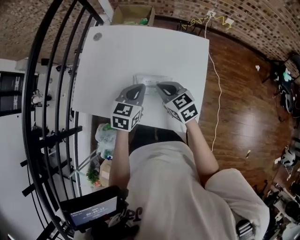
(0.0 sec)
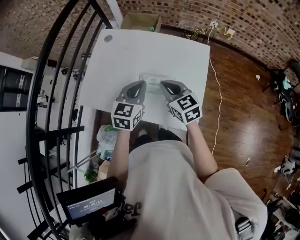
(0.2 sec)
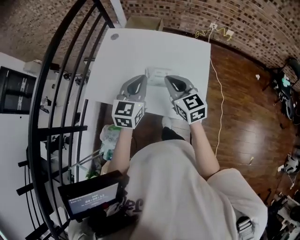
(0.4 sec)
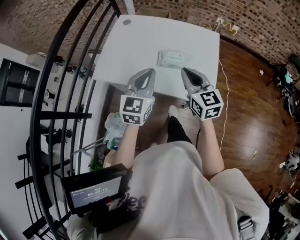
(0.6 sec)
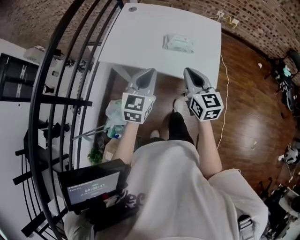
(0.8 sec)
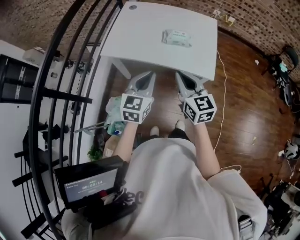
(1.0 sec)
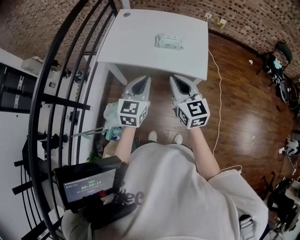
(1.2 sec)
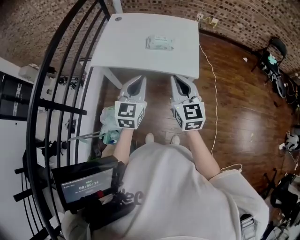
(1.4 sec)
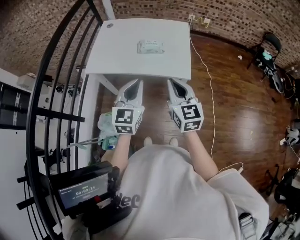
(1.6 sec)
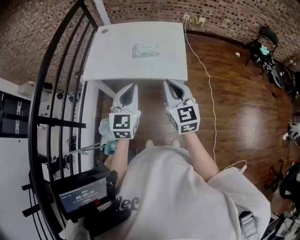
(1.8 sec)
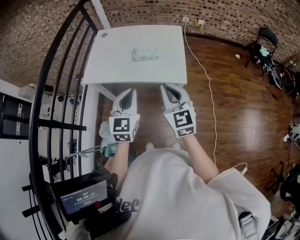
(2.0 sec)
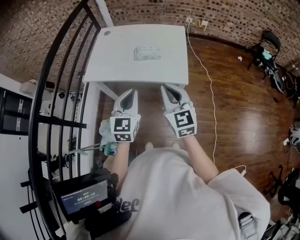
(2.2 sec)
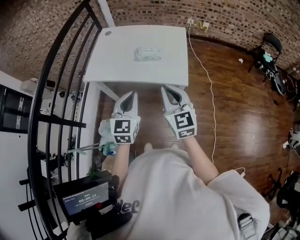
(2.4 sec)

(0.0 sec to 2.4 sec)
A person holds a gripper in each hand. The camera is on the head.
0.0 sec - 1.2 sec: The left gripper travels backward and to the left by approximately 35 cm, and rotates approximately 20 degrees; the right gripper goes roughly 40 cm backward and upward, and turns by about 30 degrees.
1.2 sec - 2.4 sec: Both grippers move to the right, approximately 10 cm.

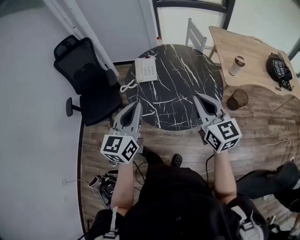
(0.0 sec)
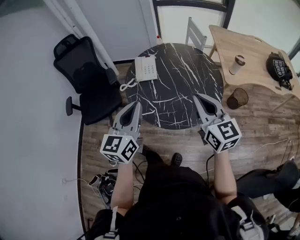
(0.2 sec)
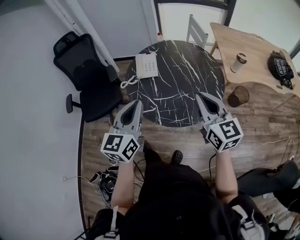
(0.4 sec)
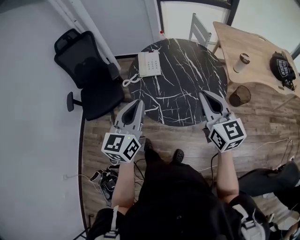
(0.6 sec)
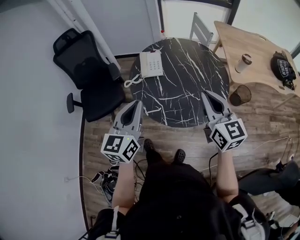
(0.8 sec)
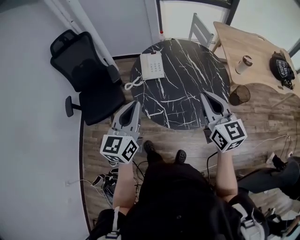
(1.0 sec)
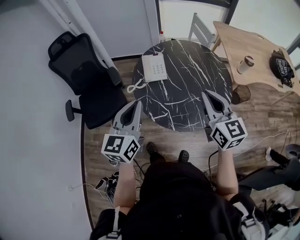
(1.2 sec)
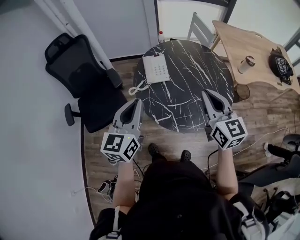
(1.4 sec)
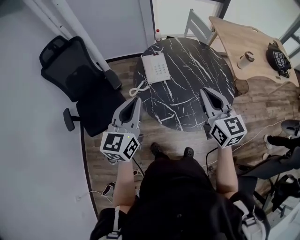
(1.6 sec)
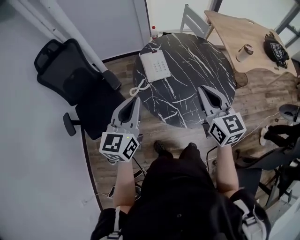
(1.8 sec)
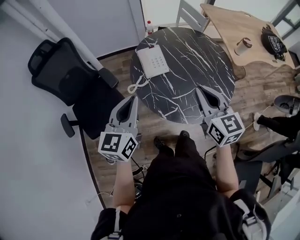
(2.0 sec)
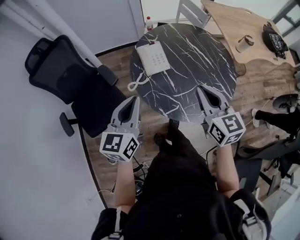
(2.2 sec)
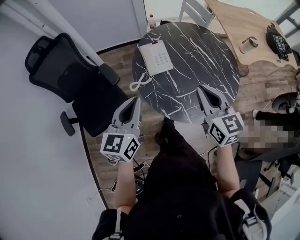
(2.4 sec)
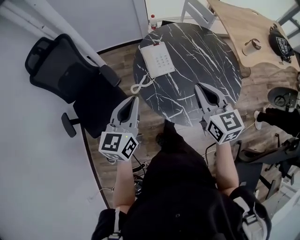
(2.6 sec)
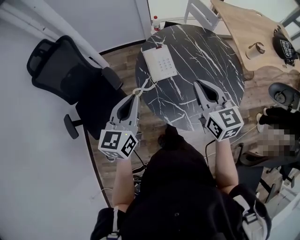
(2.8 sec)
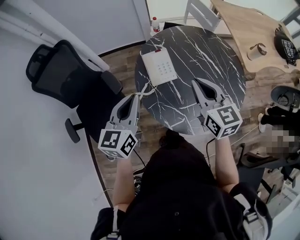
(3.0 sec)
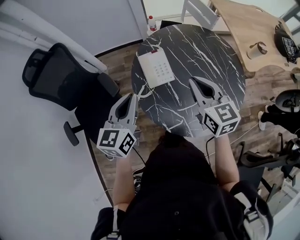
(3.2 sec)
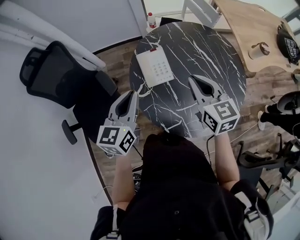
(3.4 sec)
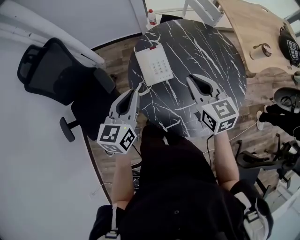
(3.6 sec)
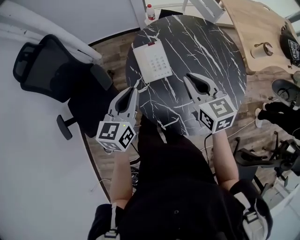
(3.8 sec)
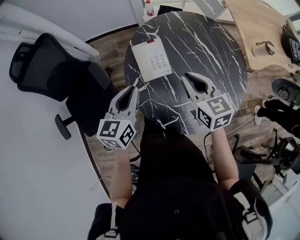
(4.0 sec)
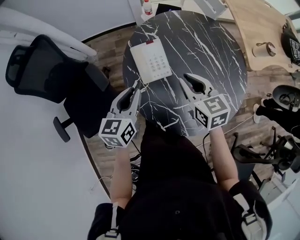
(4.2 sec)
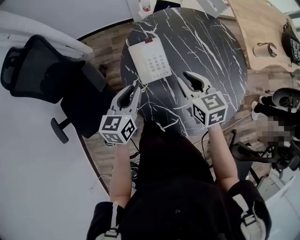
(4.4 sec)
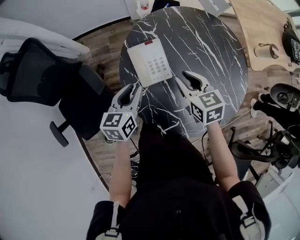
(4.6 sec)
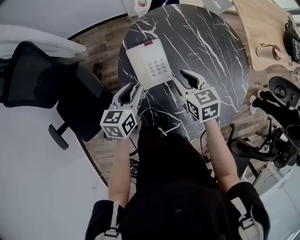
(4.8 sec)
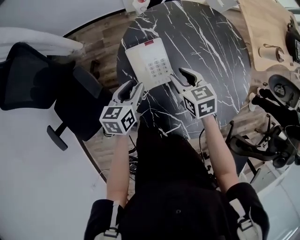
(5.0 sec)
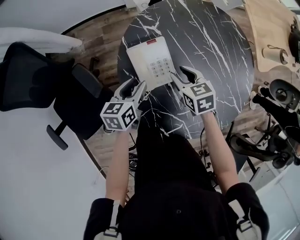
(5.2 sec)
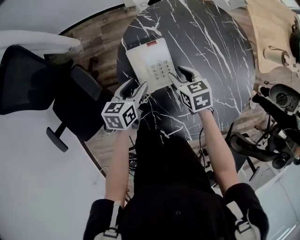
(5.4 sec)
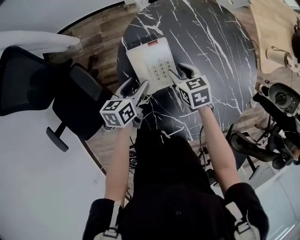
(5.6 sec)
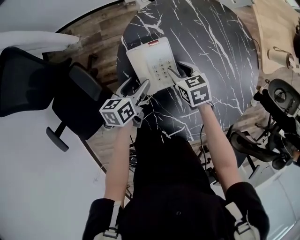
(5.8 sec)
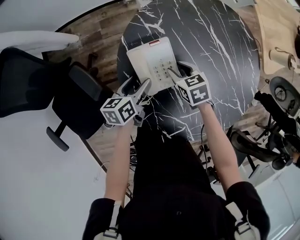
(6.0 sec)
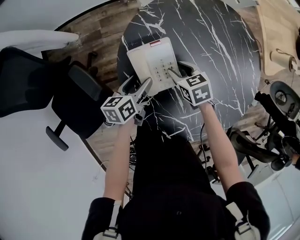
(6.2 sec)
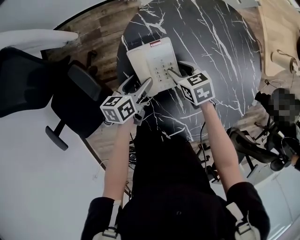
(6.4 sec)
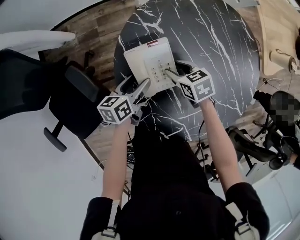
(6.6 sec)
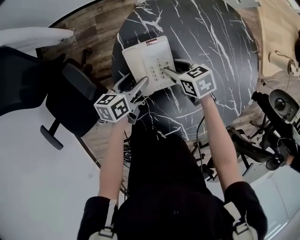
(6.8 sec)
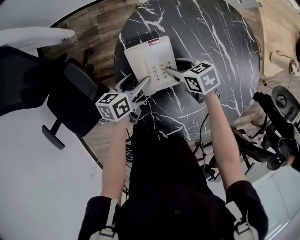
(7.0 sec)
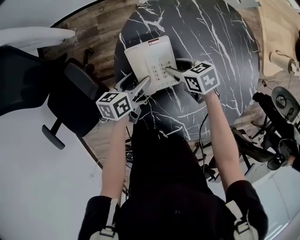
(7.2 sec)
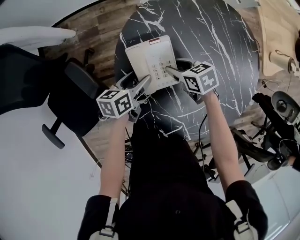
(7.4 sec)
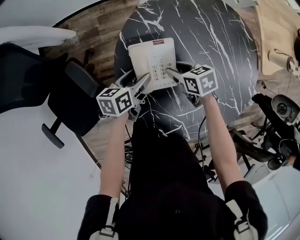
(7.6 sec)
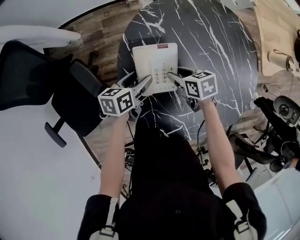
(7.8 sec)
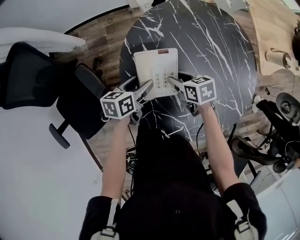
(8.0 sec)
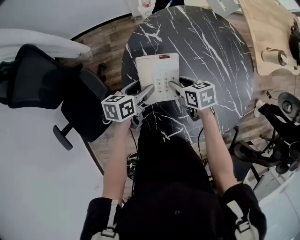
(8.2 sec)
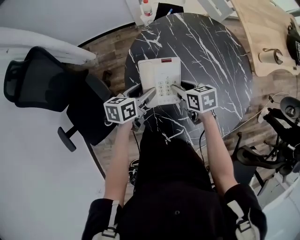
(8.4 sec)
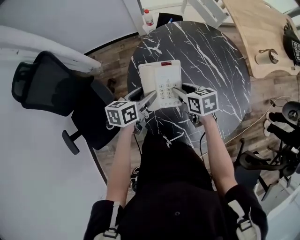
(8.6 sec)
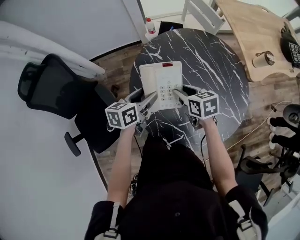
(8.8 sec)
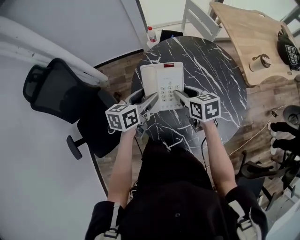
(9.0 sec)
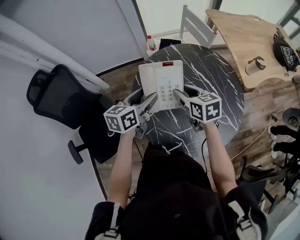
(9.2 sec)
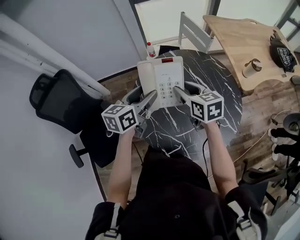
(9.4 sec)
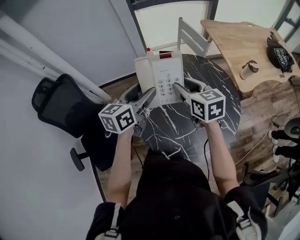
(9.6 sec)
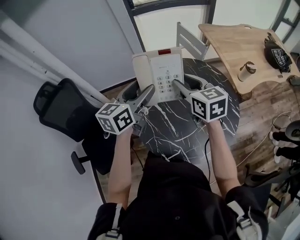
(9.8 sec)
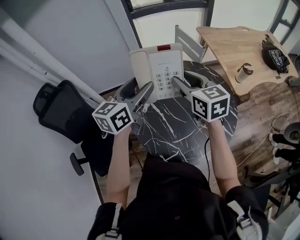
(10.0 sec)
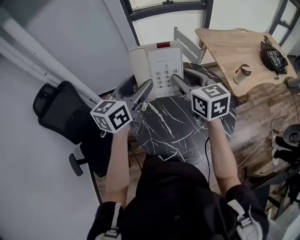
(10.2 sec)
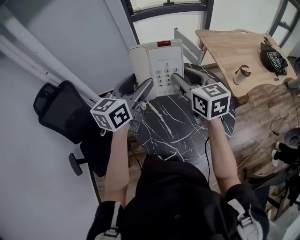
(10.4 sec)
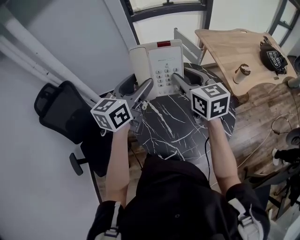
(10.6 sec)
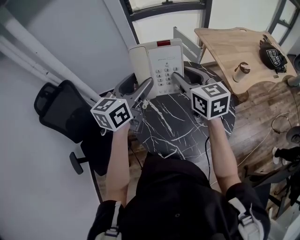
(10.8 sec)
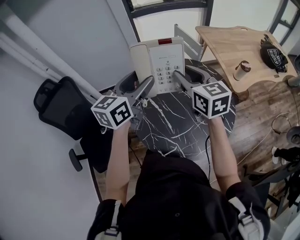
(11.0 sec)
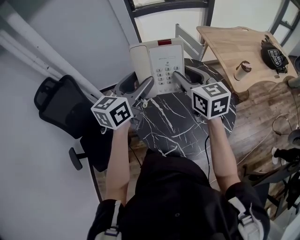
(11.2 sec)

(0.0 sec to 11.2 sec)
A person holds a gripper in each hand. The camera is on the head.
0.0 sec - 1.6 sec: The two grippers go some 20 cm to the left and forward.
1.6 sec - 3.2 sec: The grippers both shift forward and downward by some 15 cm.
3.2 sec - 4.8 sec: Both grippers travel together downward and forward, roughly 20 cm. The right gripper changes its angle by some 30 degrees, and opens its fingers. The left gripper changes its angle by roughly 30 degrees, and opens.
4.8 sec - 6.4 sec: Both grippers travel together downward, about 15 cm. The left gripper swivels some 20 degrees, and opens.
6.4 sec - 8.0 sec: The right gripper changes place by roughly 5 cm.
8.0 sec - 9.6 sec: The two grippers go some 30 cm upward. The right gripper swivels about 40 degrees. Meanwhile the left gripper rotates roughly 40 degrees.
9.6 sec - 11.2 sec: The two grippers go roughly 10 cm upward.

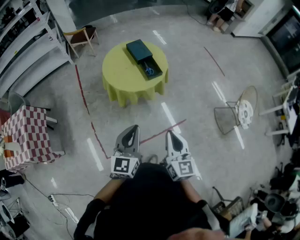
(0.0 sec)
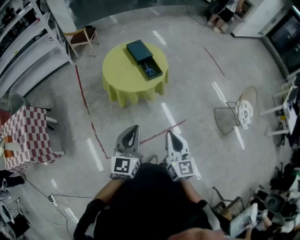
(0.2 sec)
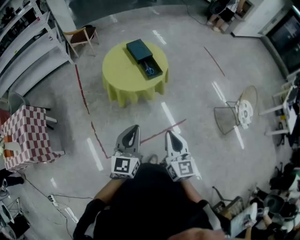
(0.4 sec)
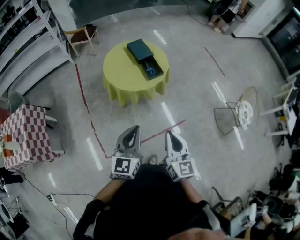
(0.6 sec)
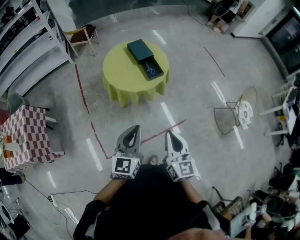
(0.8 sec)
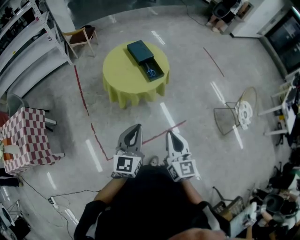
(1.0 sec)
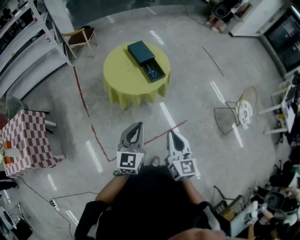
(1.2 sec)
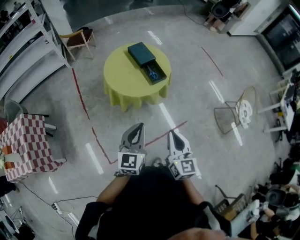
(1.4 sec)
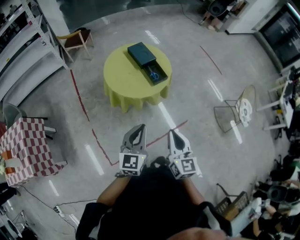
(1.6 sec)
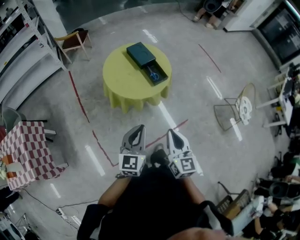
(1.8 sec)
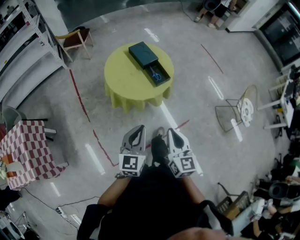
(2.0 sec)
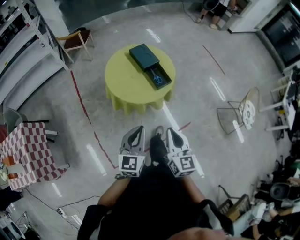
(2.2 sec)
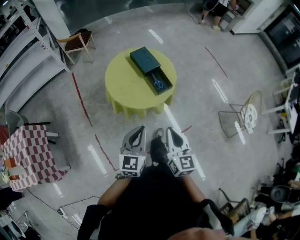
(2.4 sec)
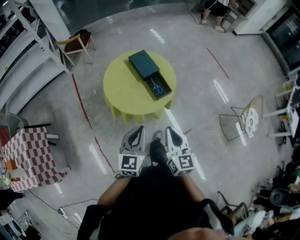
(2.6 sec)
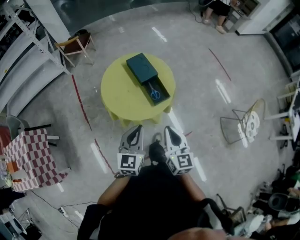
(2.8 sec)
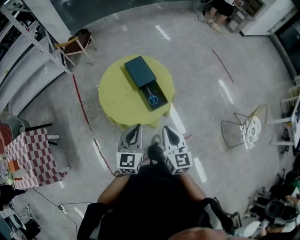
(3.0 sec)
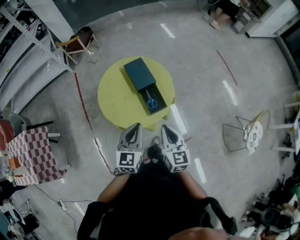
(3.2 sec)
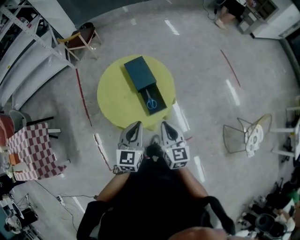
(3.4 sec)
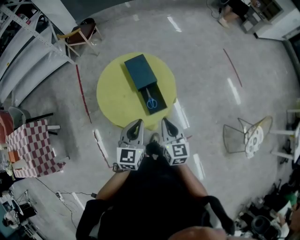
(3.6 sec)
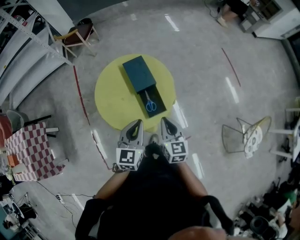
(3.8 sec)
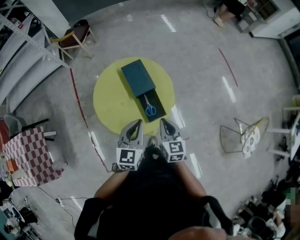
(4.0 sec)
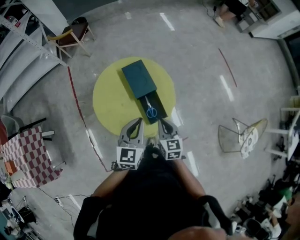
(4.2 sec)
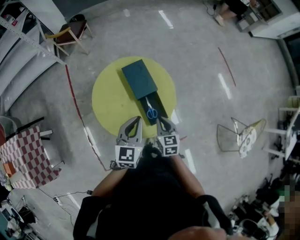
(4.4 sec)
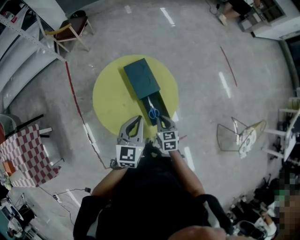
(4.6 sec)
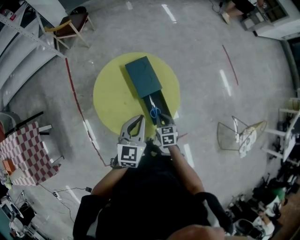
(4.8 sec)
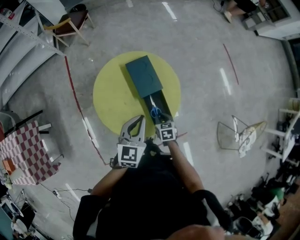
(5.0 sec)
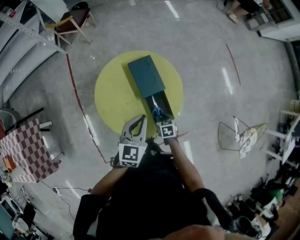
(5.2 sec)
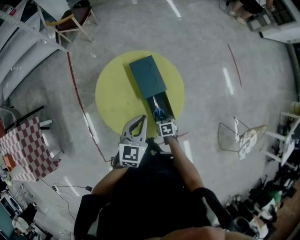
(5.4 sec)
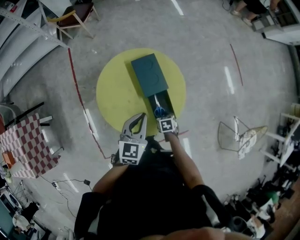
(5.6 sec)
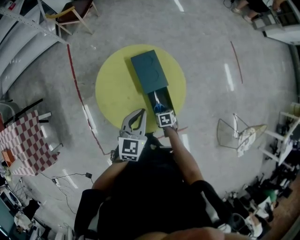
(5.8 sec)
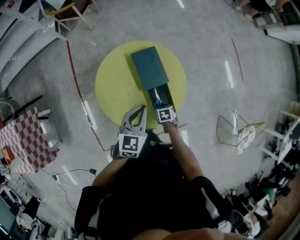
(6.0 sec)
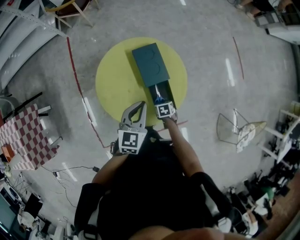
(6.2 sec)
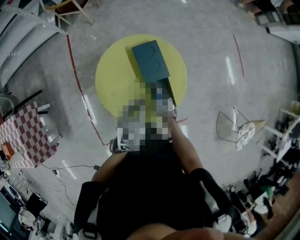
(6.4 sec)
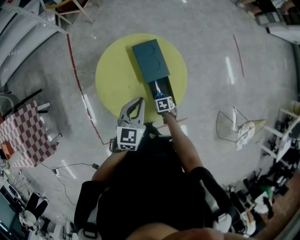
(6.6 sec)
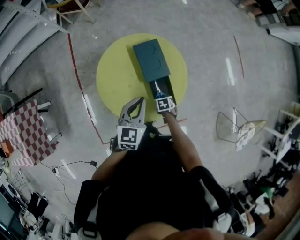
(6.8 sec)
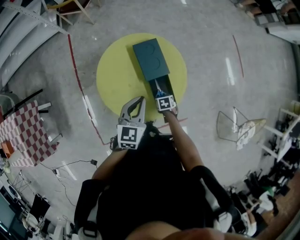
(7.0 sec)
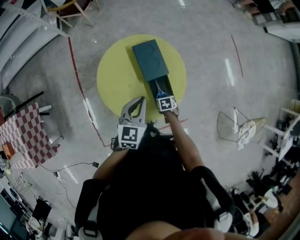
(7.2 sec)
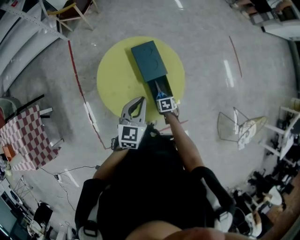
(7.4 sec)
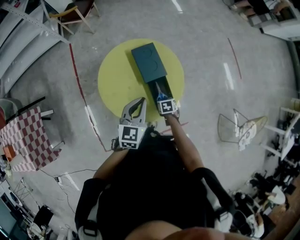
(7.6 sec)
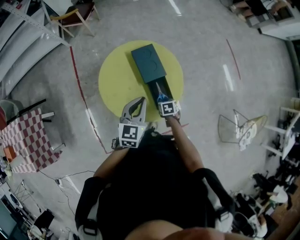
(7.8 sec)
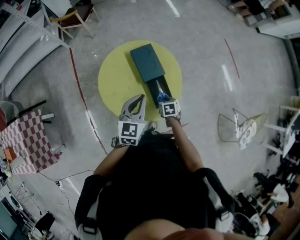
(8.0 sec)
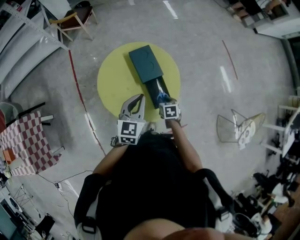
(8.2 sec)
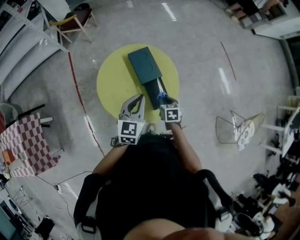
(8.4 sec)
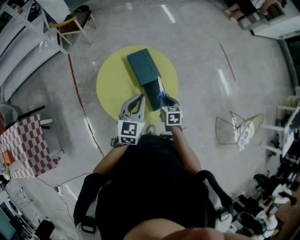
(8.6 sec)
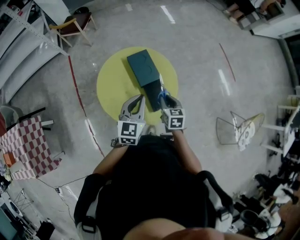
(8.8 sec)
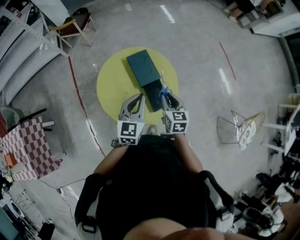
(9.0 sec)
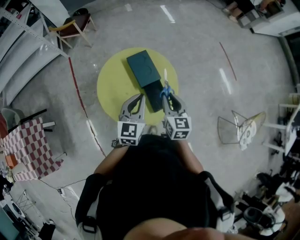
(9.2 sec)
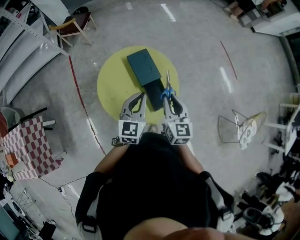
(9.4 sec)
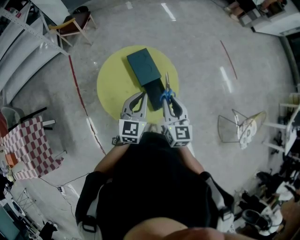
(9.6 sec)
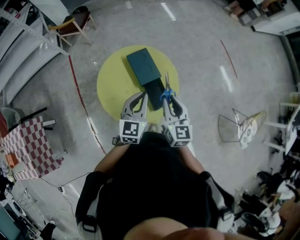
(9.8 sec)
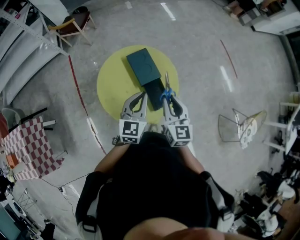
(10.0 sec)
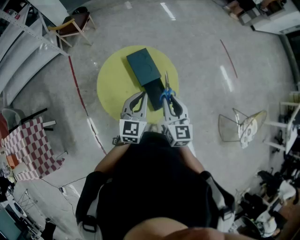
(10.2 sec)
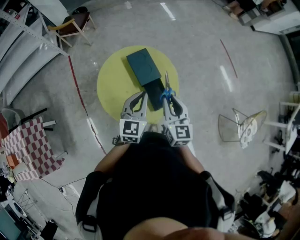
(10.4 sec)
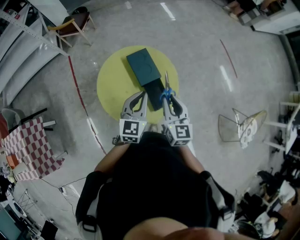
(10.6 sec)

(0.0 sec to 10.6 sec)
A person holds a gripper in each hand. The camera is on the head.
0.0 sec - 1.6 sec: The left gripper heads forward and to the left, covering roughly 10 cm. Meanwhile the right gripper travels to the left and forward by some 10 cm.
1.6 sec - 3.0 sec: Both grippers move forward, approximately 25 cm.
3.0 sec - 4.6 sec: The right gripper moves downward and forward, roughly 30 cm, and turns by about 30 degrees. The left gripper shifts approximately 20 cm forward.
4.6 sec - 6.0 sec: The right gripper heads downward, covering approximately 15 cm, angles its fingers downward, by roughly 30 degrees, and opens.
6.0 sec - 7.6 sec: The grippers make only small movements.
7.6 sec - 9.0 sec: The right gripper moves upward, about 25 cm, and tilts its fingers approximately 40 degrees upward.
9.0 sec - 10.6 sec: The right gripper goes roughly 10 cm upward.
